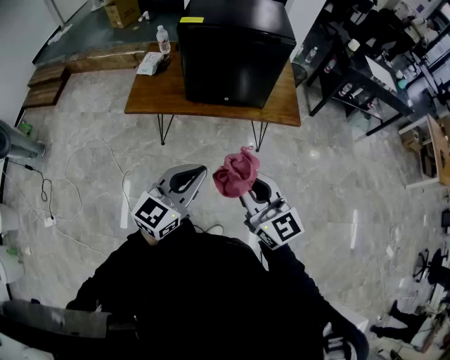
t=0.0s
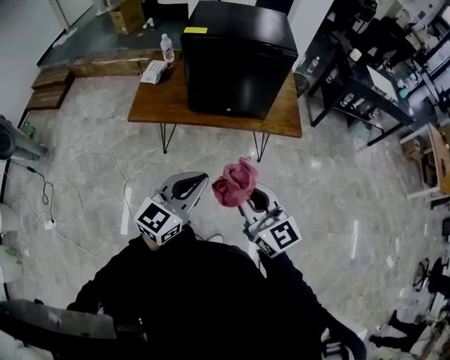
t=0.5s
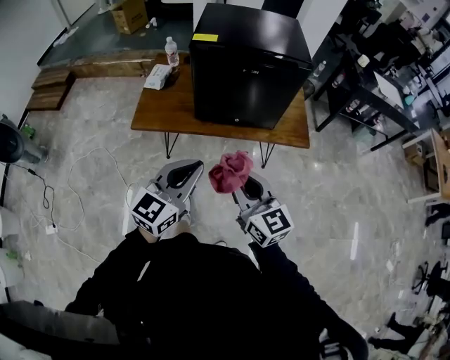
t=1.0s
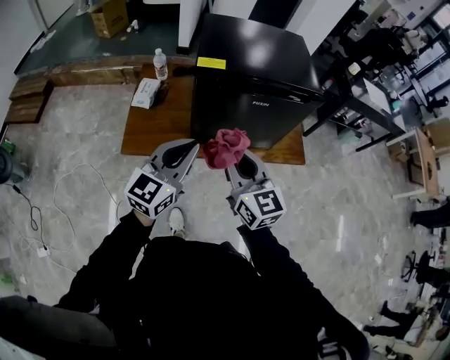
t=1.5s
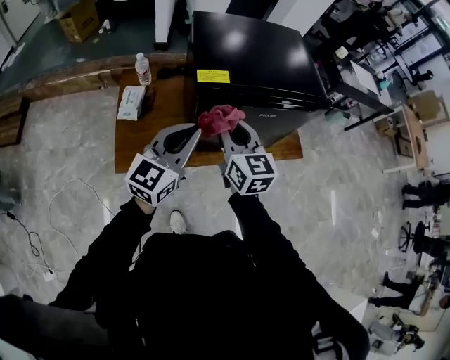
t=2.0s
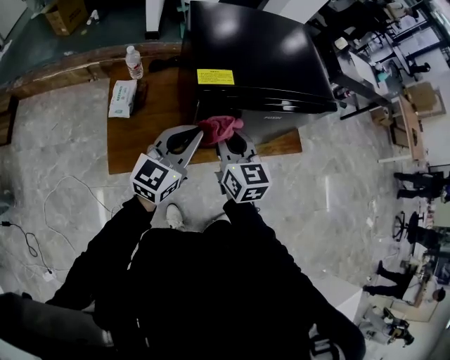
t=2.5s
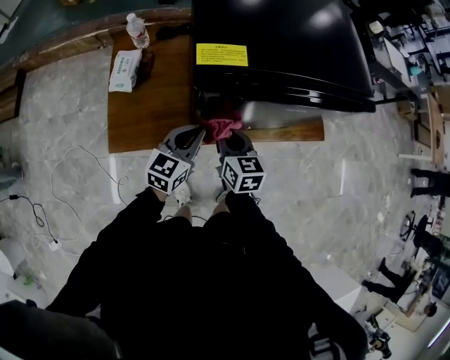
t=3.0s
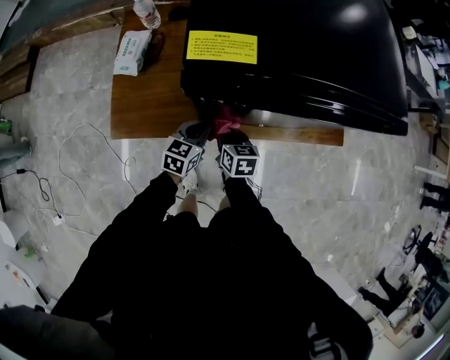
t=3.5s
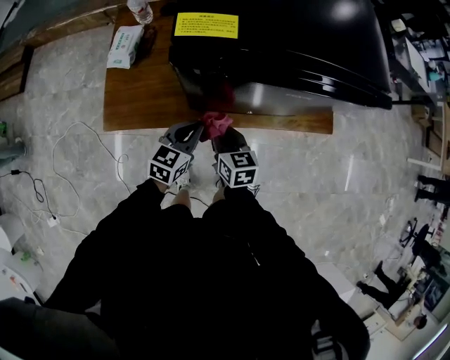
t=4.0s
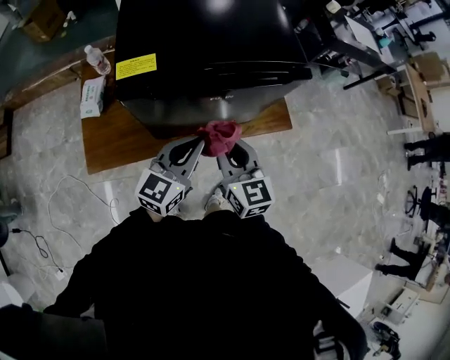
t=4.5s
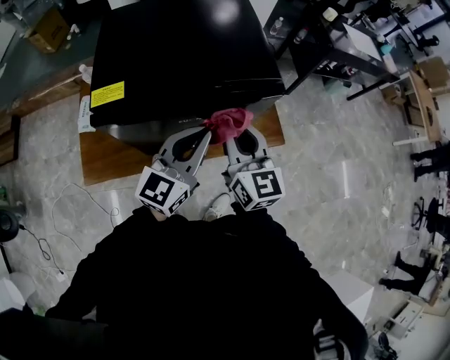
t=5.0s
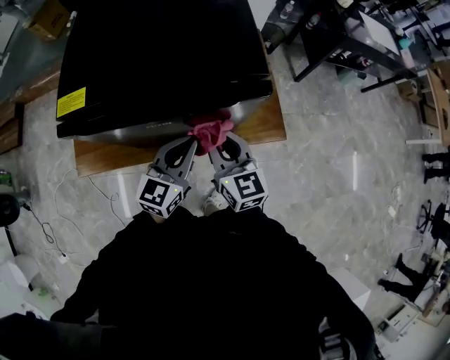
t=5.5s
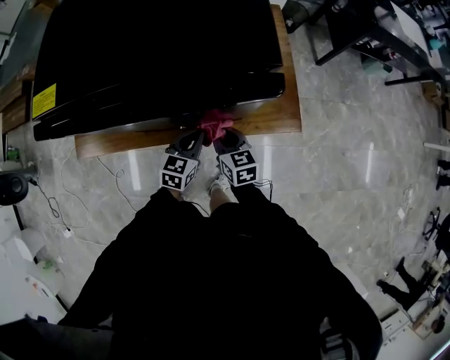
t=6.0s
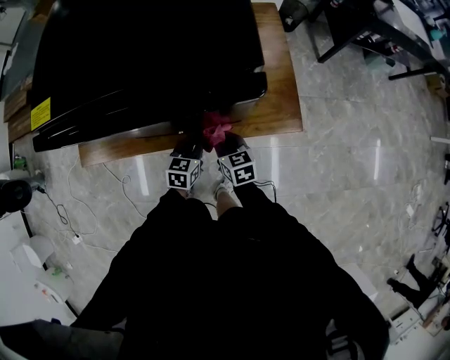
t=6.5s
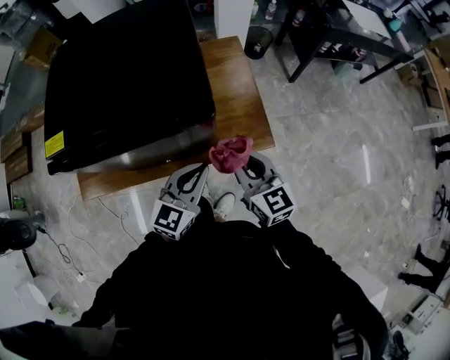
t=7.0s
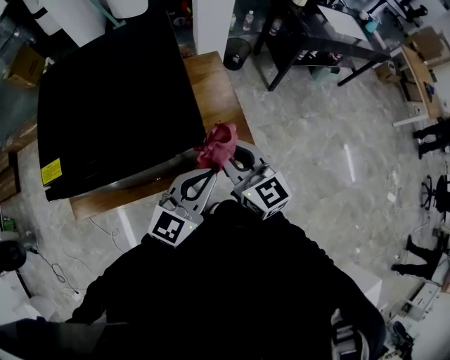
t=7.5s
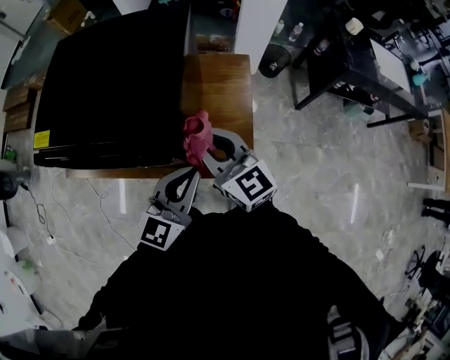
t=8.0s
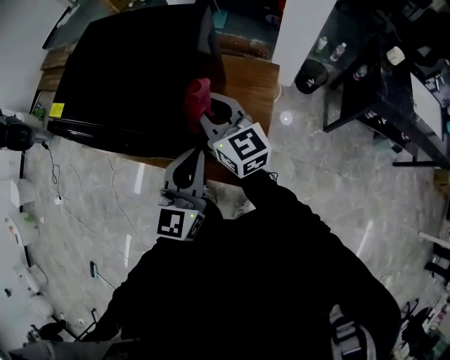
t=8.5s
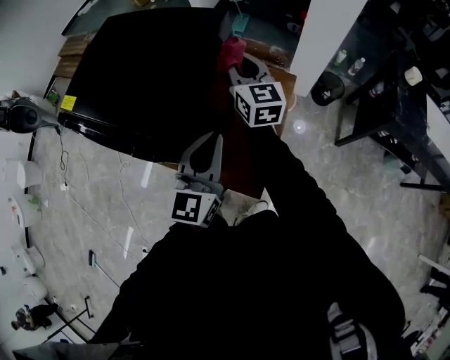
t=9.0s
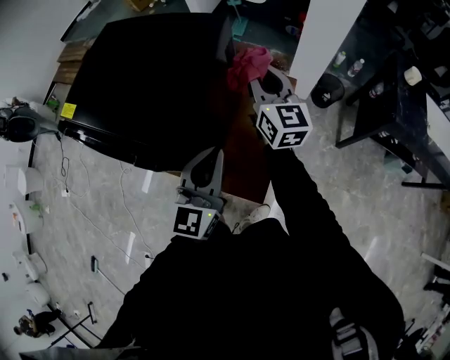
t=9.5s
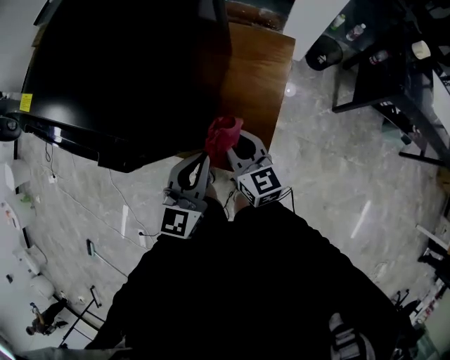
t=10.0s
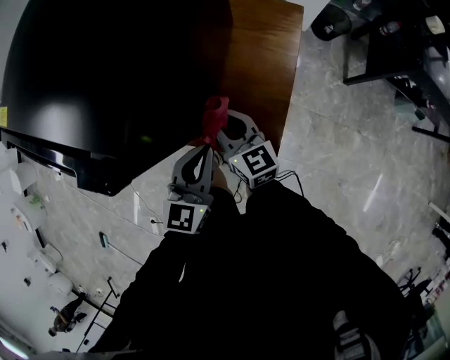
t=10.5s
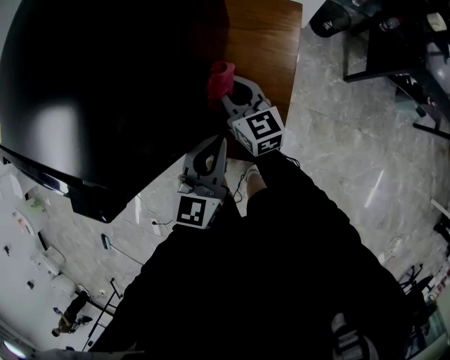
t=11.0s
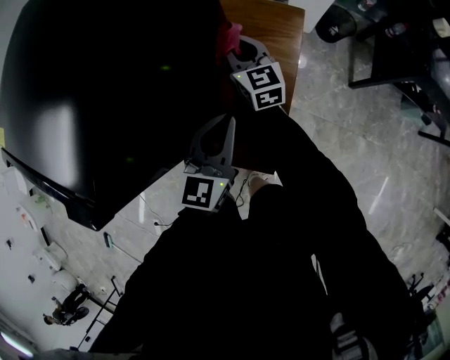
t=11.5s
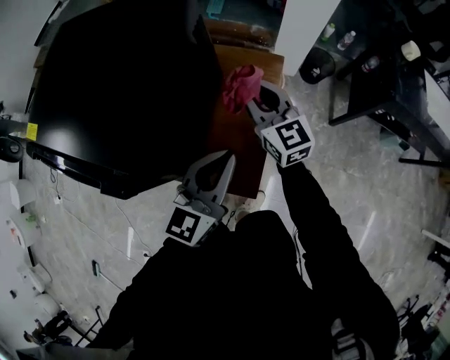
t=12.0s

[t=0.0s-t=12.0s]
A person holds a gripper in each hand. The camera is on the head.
t=0.0s to t=2.0s: The two grippers travel together, forward and to the left, some 50 cm. The right gripper turns by roughly 30 degrees.
t=2.0s to t=4.0s: The grippers both shift downward by roughly 35 cm. The right gripper rotates roughly 30 degrees. Meanwhile the left gripper rotates approximately 30 degrees.
t=4.0s to t=6.0s: The two grippers go some 25 cm to the right. The right gripper travels upward and back again, some 30 cm each way; the left gripper moves approximately 30 cm upward and comes back.
t=6.0s to t=8.0s: Both grippers move upward, about 30 cm. The left gripper changes its angle by about 30 degrees. The right gripper rotates roughly 40 degrees.
t=8.0s to t=10.0s: The right gripper moves downward, about 20 cm, and reaches about 20 cm forward, then returns, while the left gripper travels downward by approximately 15 cm, and turns by roughly 20 degrees.
t=10.0s to t=12.0s: The left gripper heads to the right and upward, covering about 15 cm, while the right gripper goes some 20 cm forward, to the right and upward.

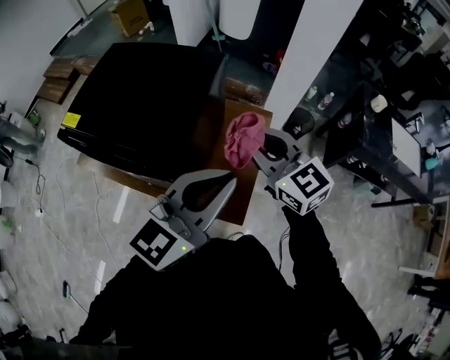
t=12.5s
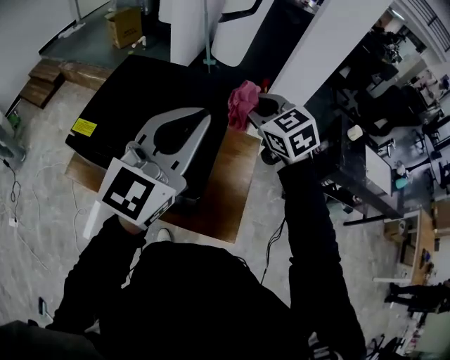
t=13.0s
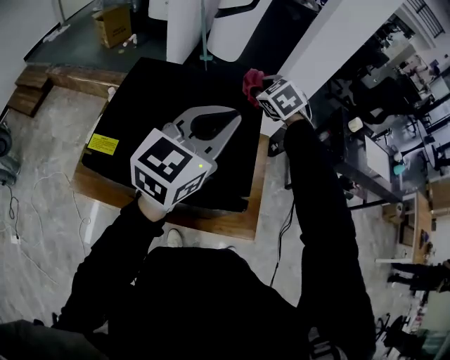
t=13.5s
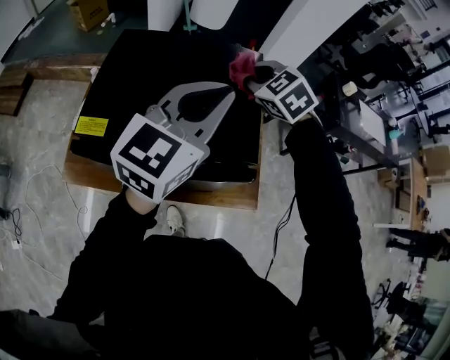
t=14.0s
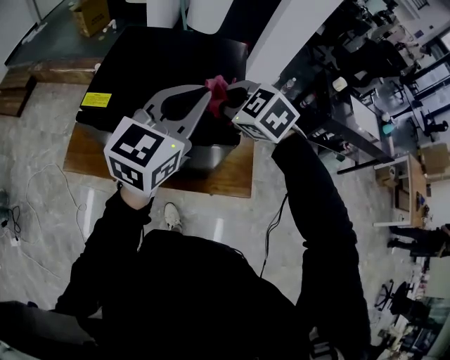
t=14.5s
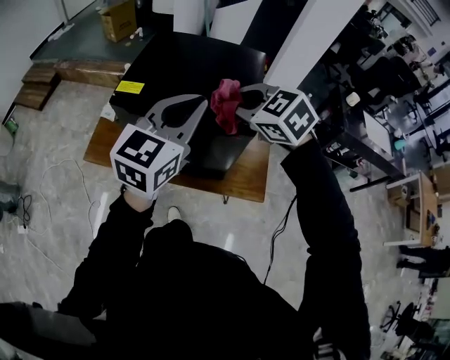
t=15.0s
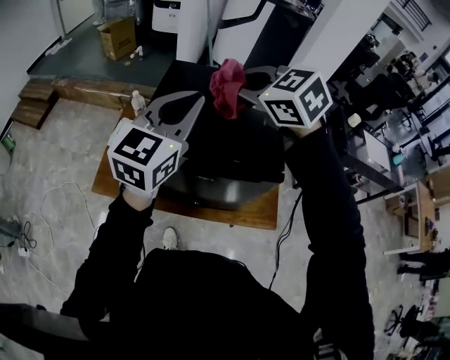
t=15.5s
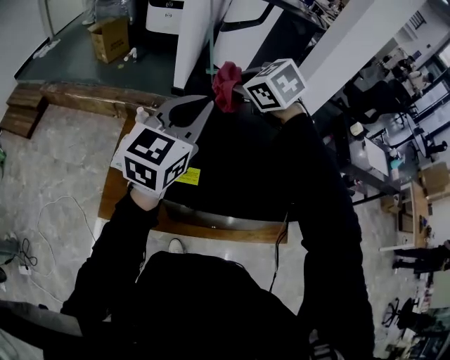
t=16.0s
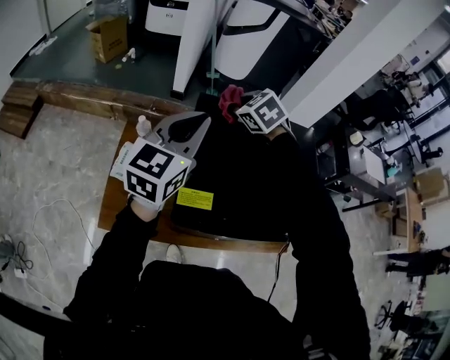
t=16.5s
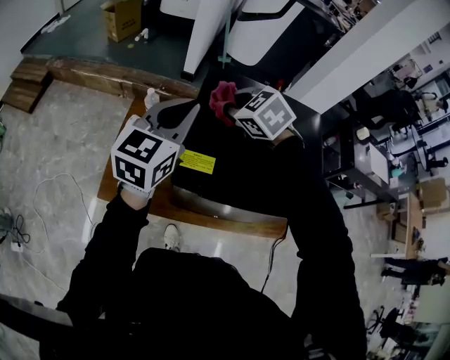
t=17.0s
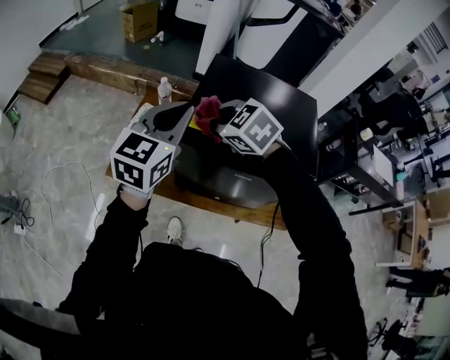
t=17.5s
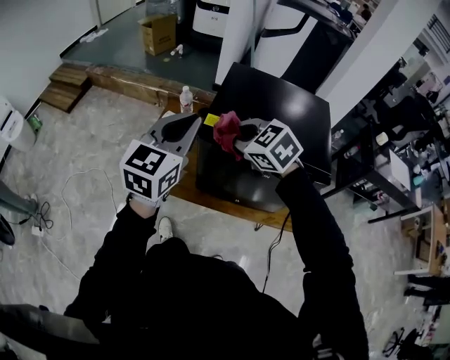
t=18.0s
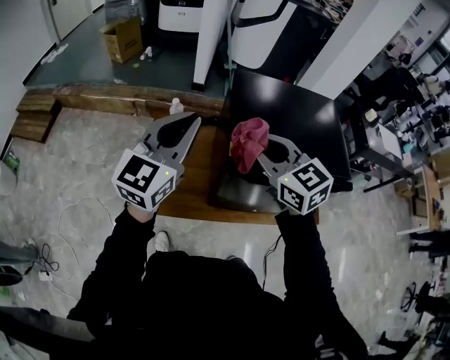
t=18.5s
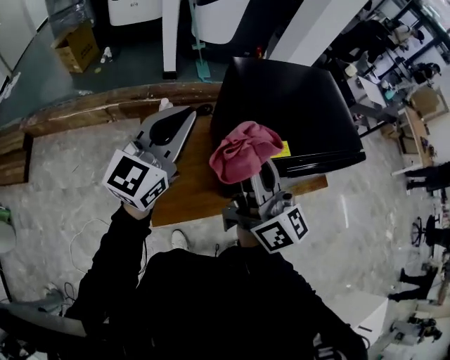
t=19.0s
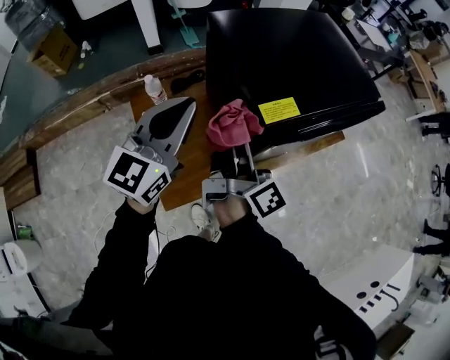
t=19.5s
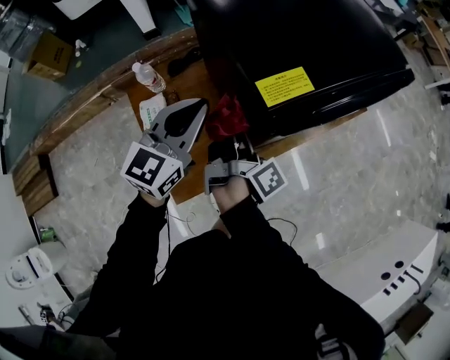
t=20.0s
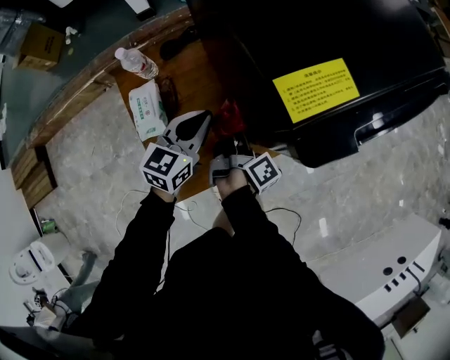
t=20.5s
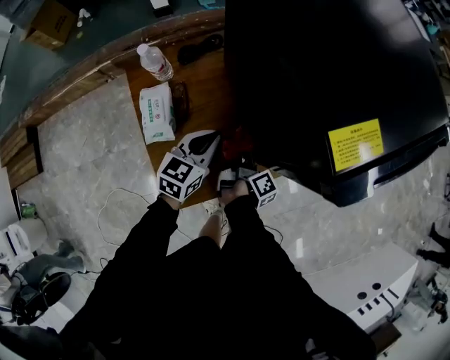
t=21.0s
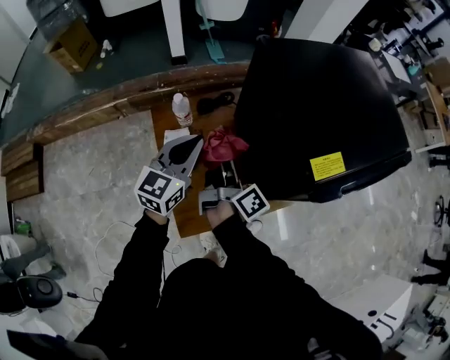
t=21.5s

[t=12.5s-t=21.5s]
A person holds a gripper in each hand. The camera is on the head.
t=12.5s to t=14.5s: The two grippers go approximately 25 cm to the left. The right gripper reaches about 20 cm forward, then returns, and tilts its fingers roughly 40 degrees downward.
t=14.5s to t=17.0s: The left gripper goes forward and backward, roughly 30 cm each way, reversing 2 times; the right gripper swings forward and backward, roughly 40 cm each way, with 2 reversals.
t=17.0s to t=19.5s: The right gripper shifts by roughly 20 cm, and points its fingers some 60 degrees further upward; the left gripper ends up some 15 cm from where it was, and changes its angle by about 30 degrees.
t=19.5s to t=21.5s: The left gripper heads downward and to the left, covering approximately 20 cm, while the right gripper shifts roughly 15 cm to the left, and travels downward and back again, approximately 40 cm each way.

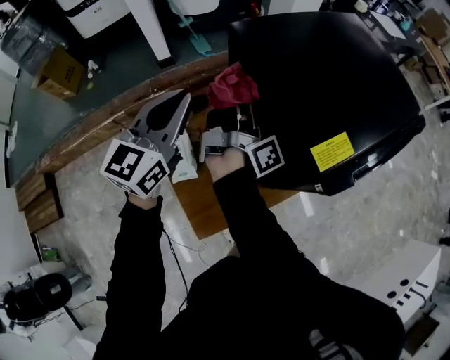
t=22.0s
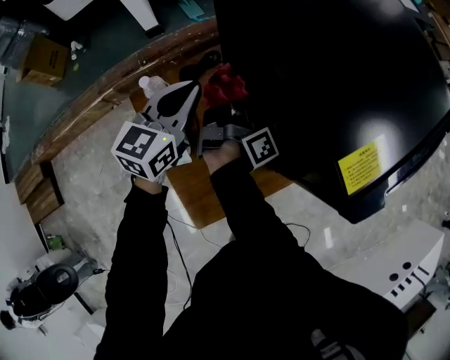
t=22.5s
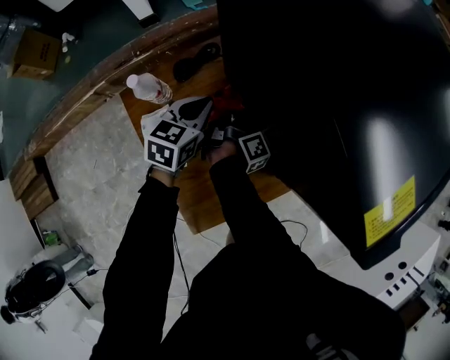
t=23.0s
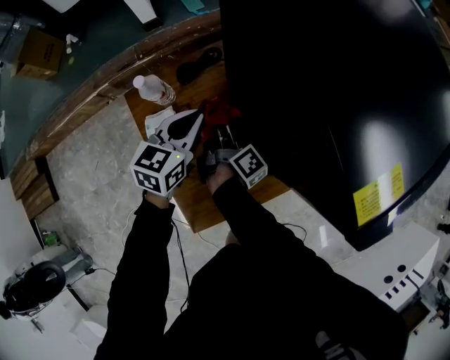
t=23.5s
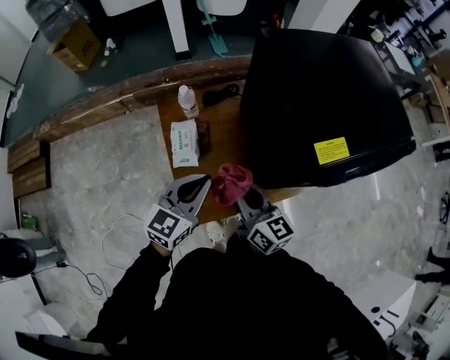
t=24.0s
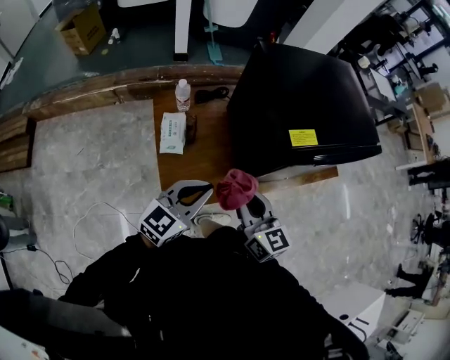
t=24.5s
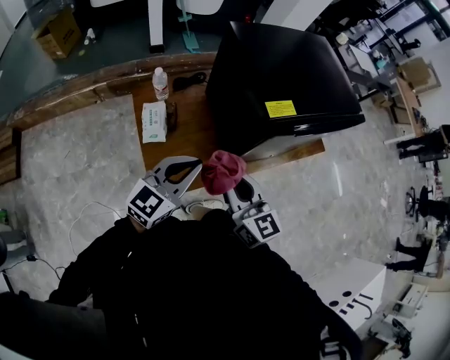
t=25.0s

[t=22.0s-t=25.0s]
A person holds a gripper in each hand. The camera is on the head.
t=22.0s to t=23.5s: Both grippers move downward, about 30 cm. The left gripper turns by approximately 30 degrees; the right gripper rotates approximately 30 degrees.
t=23.5s to t=25.0s: The left gripper goes approximately 35 cm backward and upward, and swivels roughly 20 degrees. The right gripper is displaced upward and backward by approximately 40 cm, and rotates around the line of its fingers by about 80 degrees, counterclockwise from behind.

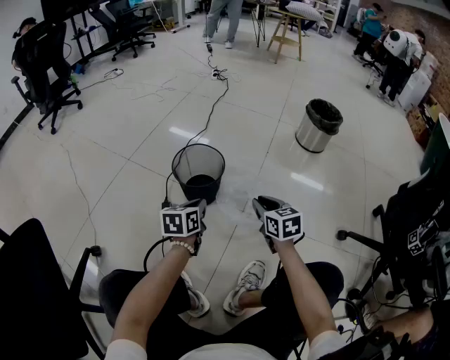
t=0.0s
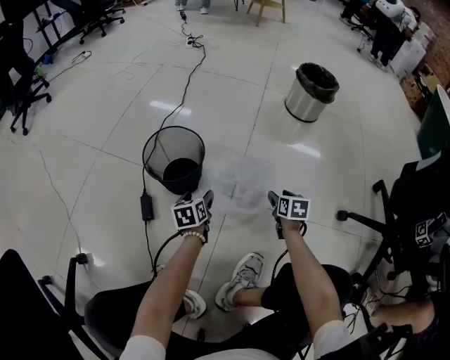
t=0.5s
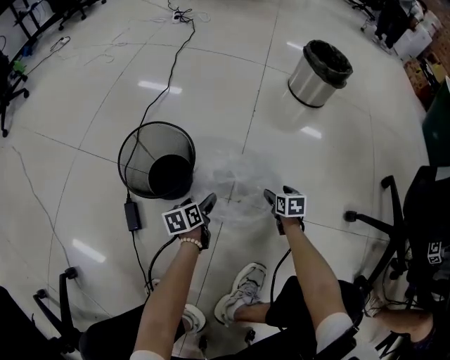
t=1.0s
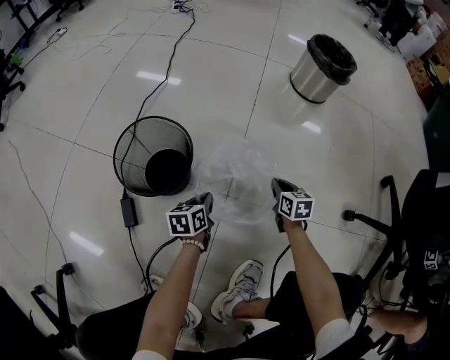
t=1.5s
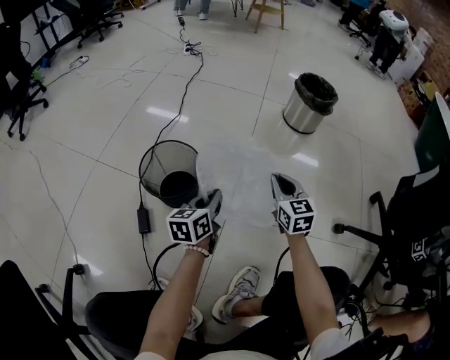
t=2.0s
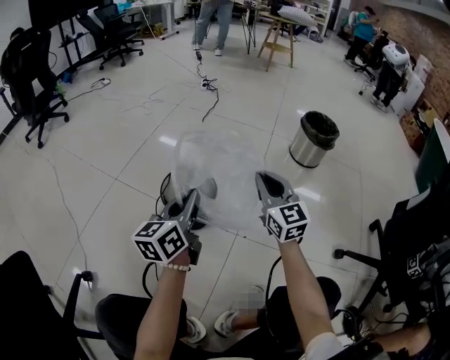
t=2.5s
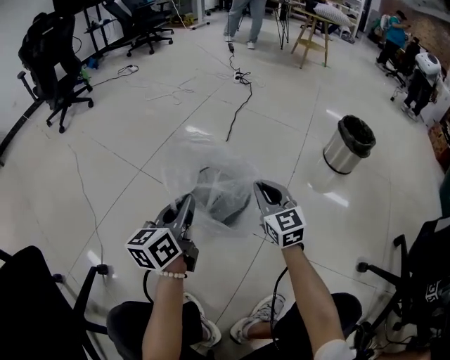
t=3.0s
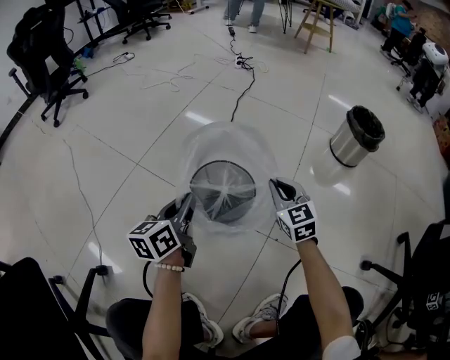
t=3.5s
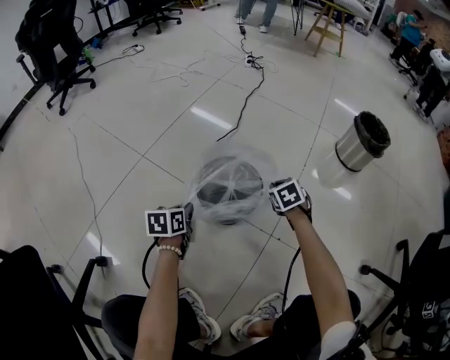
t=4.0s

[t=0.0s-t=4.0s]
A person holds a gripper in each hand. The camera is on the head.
t=0.0s to t=2.0s: Both grippers move forward and to the right, about 15 cm. The left gripper travels downward and back again, some 25 cm each way, and opens, then closes again. Meanwhile the right gripper travels downward and back again, about 30 cm each way, swivels approximately 20 degrees, and opens, then closes once more.
t=2.0s to t=4.0s: The right gripper goes approximately 25 cm to the left, forward and downward, and tips its fingers downward by roughly 40 degrees. The left gripper travels to the left by about 30 cm, and swivels some 30 degrees.
